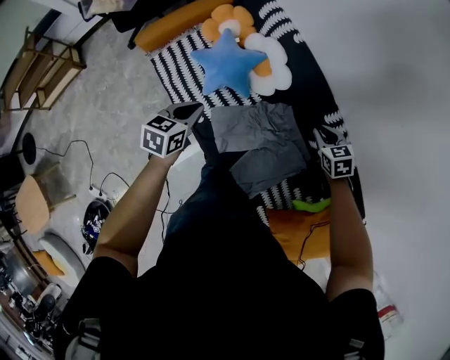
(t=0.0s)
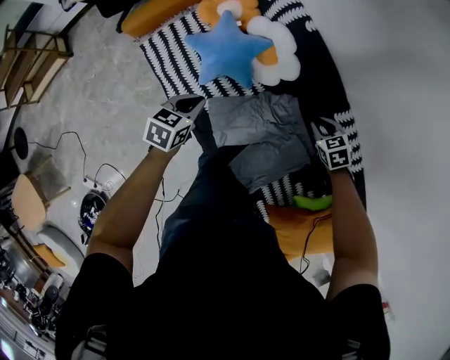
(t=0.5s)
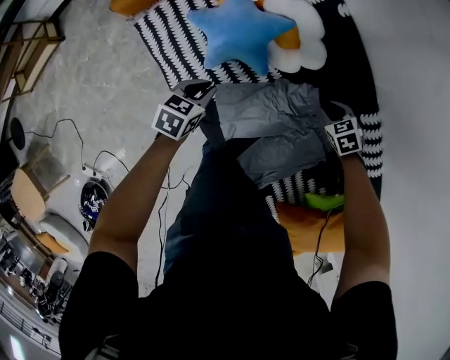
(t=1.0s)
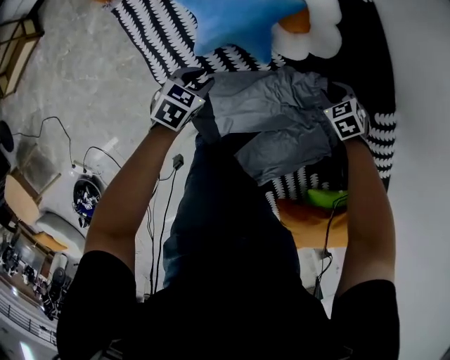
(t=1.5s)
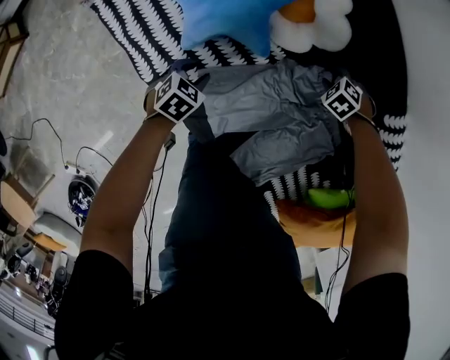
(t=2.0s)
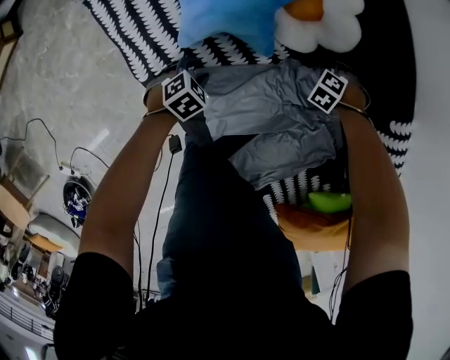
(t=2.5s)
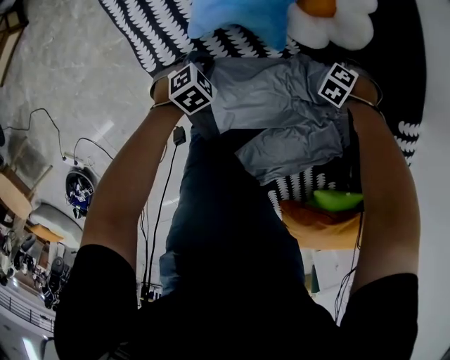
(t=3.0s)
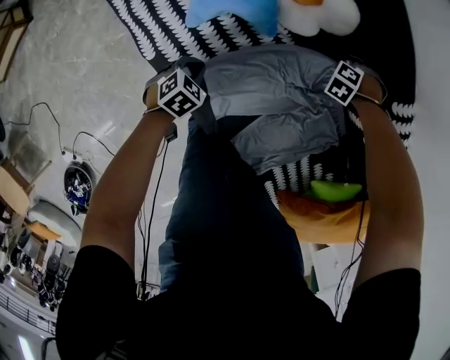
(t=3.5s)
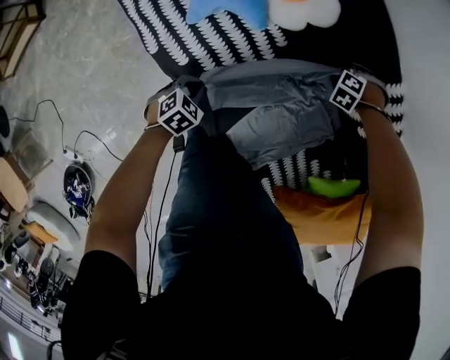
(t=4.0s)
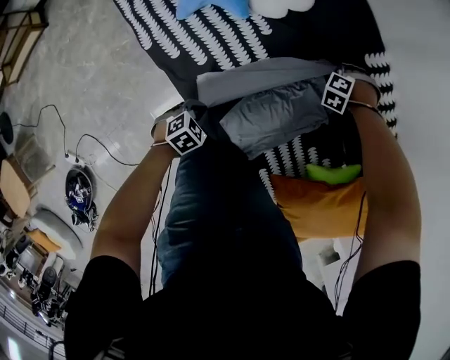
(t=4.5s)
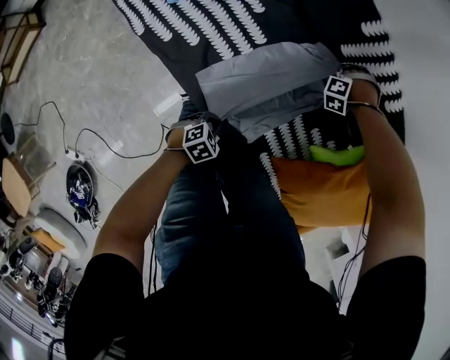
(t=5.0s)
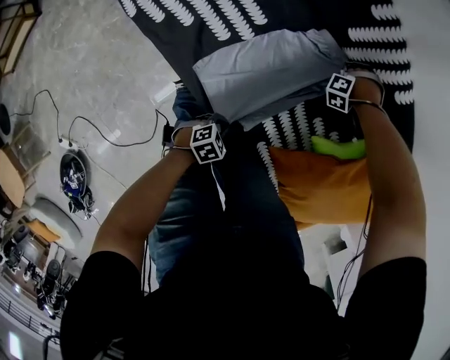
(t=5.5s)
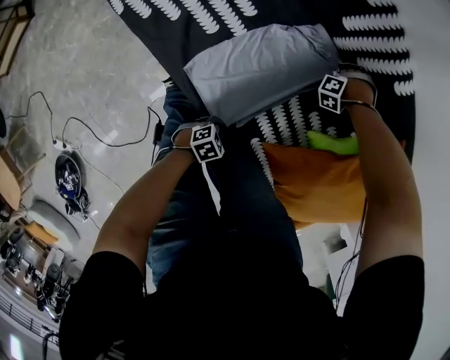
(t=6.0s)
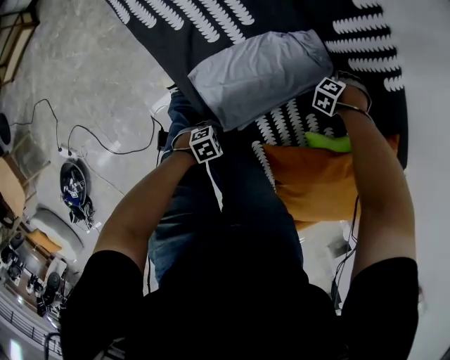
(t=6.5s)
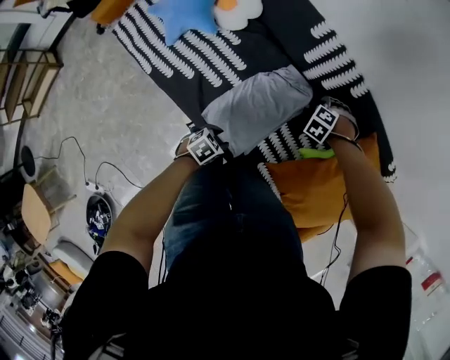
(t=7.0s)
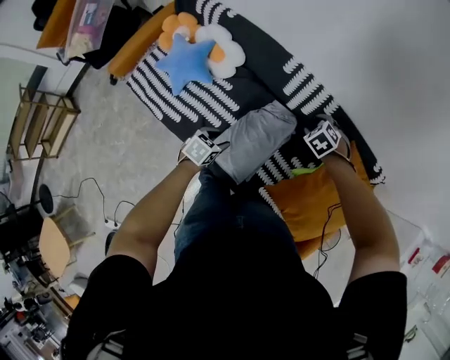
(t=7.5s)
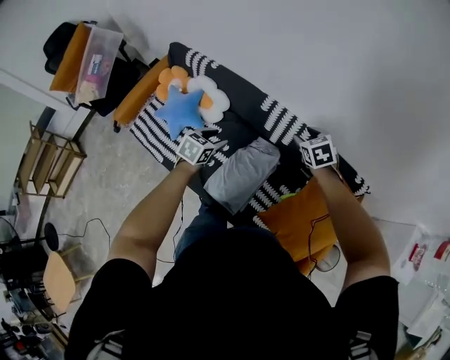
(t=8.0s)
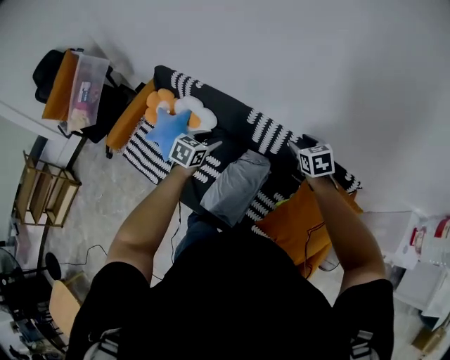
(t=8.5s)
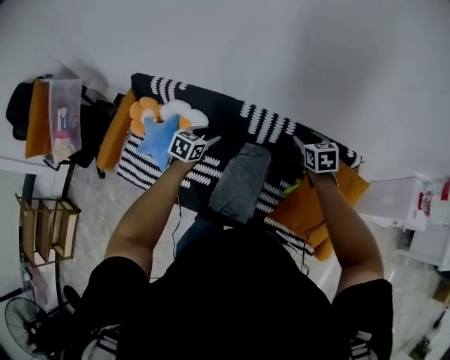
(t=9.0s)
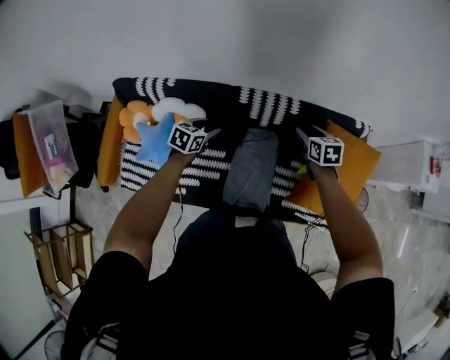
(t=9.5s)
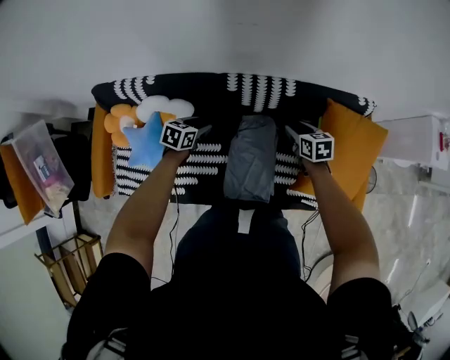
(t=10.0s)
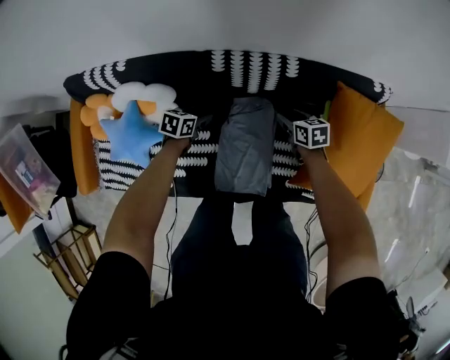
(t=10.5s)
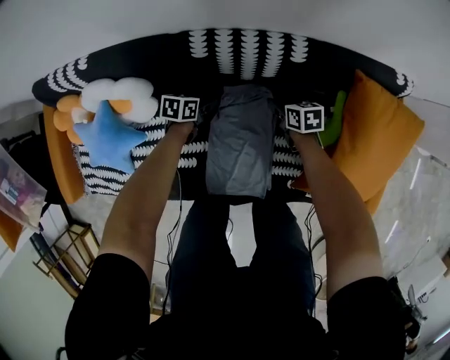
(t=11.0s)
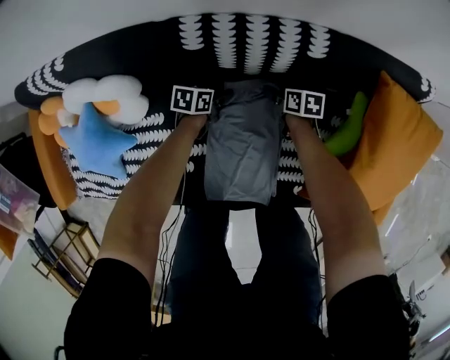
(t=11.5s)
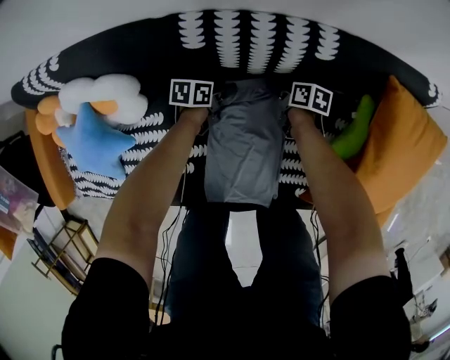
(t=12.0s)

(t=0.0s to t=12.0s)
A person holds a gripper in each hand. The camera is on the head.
t=0.0s - t=2.0s: The grippers both shift downward by some 40 cm. The right gripper tips its fingers downward by about 30 degrees; the left gripper swivels approximately 30 degrees, and opens up.
t=2.0s - t=4.0s: The left gripper moves about 15 cm, and closes up. Meanwhile the right gripper ends up some 10 cm from where it was, swivels some 30 degrees, and closes its fingers.
t=4.0s - t=6.0s: The grippers both shift to the right and forward by some 35 cm. The left gripper swivels about 30 degrees.
t=6.0s - t=8.0s: Both grippers move upward, approximately 50 cm. The left gripper changes its angle by roughly 30 degrees, and opens up. Meanwhile the right gripper twists roughly 100 degrees clockwise, seen from behind, and opens its fingers.
t=8.0s - t=10.0s: The right gripper travels downward by some 15 cm, and rotates around the line of its fingers by some 50 degrees, clockwise from behind; the left gripper shifts by about 20 cm, and rotates some 30 degrees.
t=10.0s - t=12.0s: The grippers both shift downward by about 40 cm. The right gripper rotates approximately 40 degrees; the left gripper turns by roughly 30 degrees.

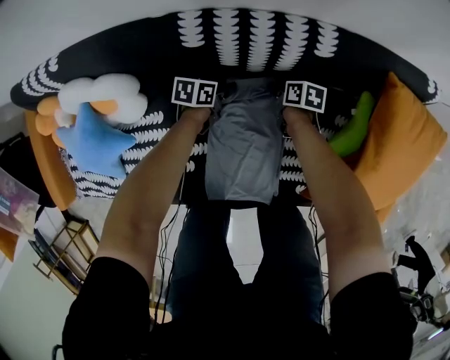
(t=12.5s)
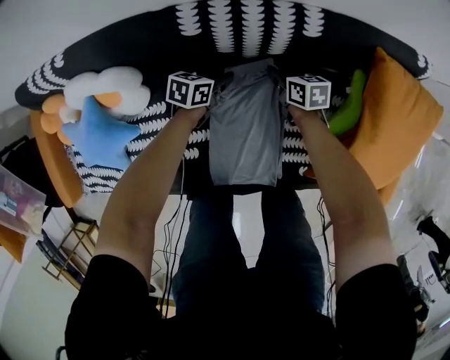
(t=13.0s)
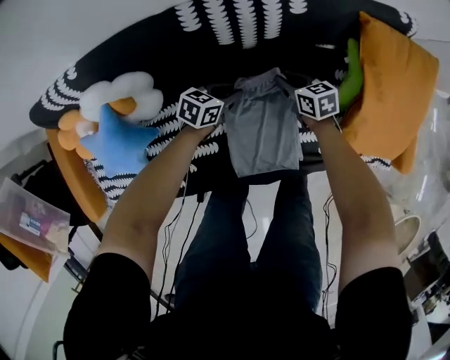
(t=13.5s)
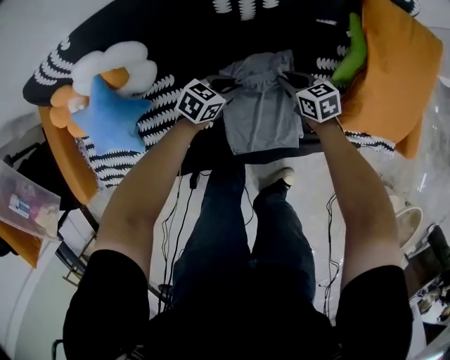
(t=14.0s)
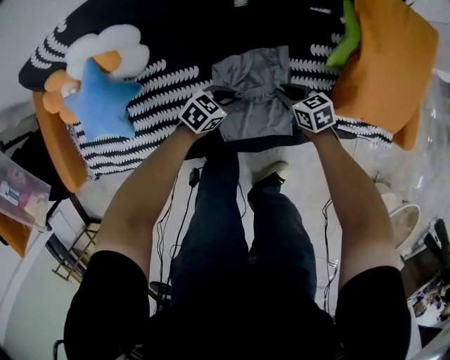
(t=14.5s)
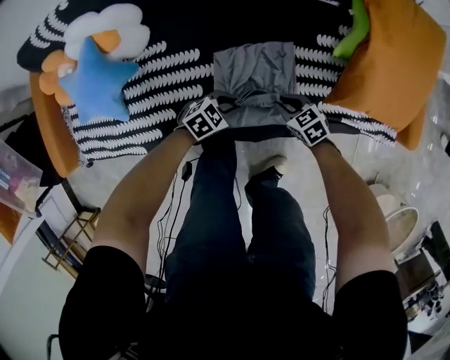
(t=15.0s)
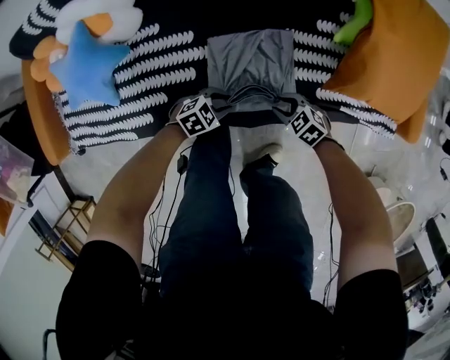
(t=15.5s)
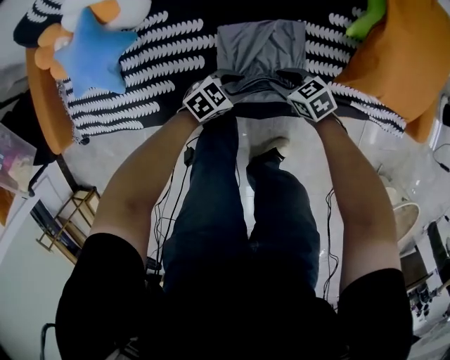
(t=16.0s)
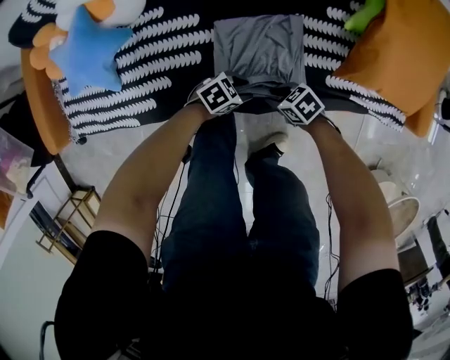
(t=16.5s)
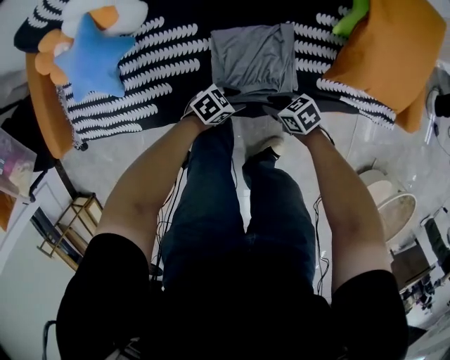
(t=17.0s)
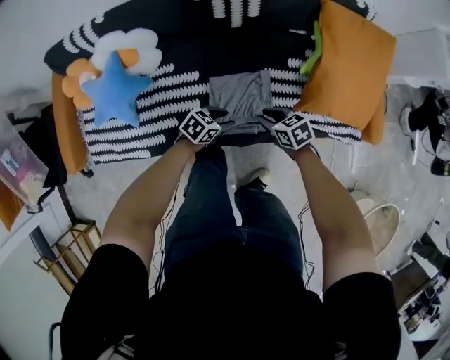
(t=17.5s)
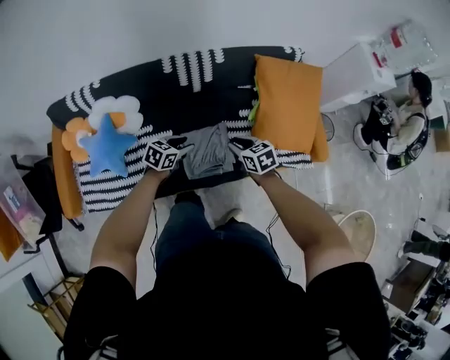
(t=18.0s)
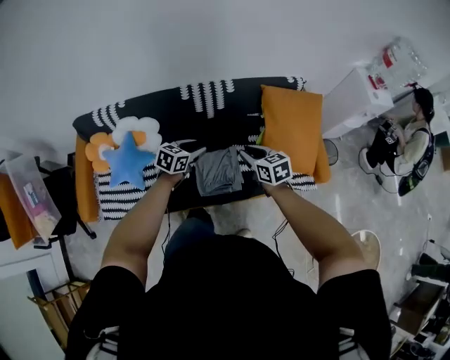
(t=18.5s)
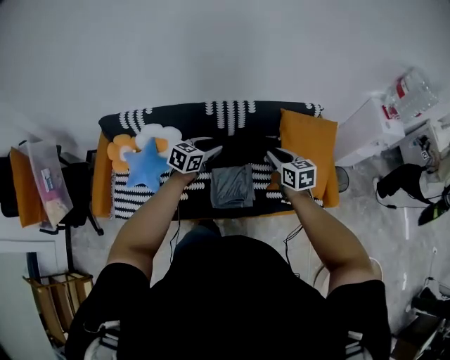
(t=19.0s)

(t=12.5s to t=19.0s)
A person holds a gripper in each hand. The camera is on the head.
t=12.5s - t=14.5s: The left gripper shifts by approximately 30 cm, and twists approximately 40 degrees clockwise, seen from behind, while the right gripper shifts by approximately 30 cm, and turns by about 30 degrees.
t=14.5s - t=17.0s: The right gripper shifts by some 20 cm, and changes its angle by some 20 degrees. The left gripper changes place by about 15 cm, and opens up.
t=17.0s - t=19.0s: The grippers both shift upward by roughly 60 cm. The right gripper rotates some 50 degrees; the left gripper rotates some 40 degrees.

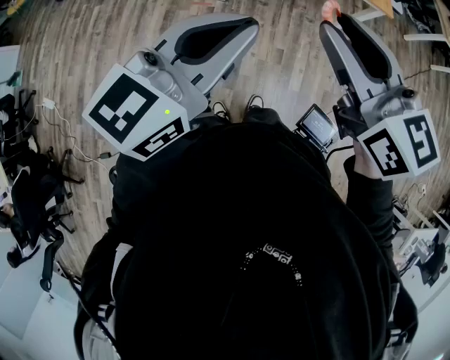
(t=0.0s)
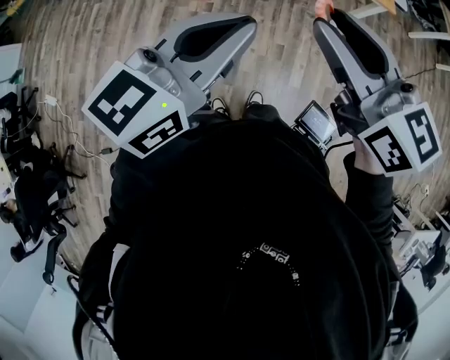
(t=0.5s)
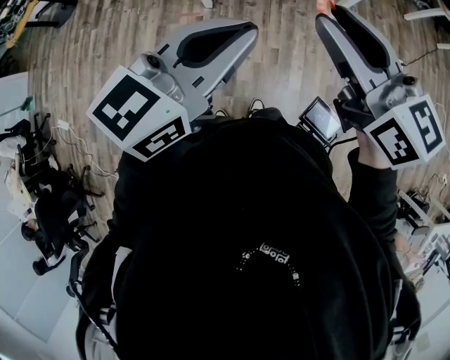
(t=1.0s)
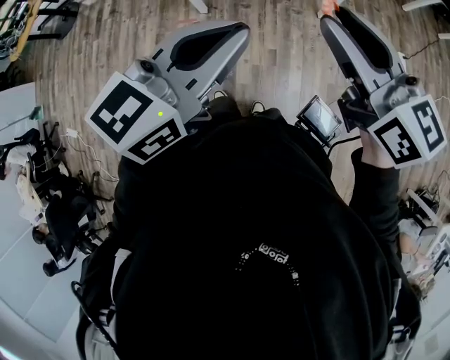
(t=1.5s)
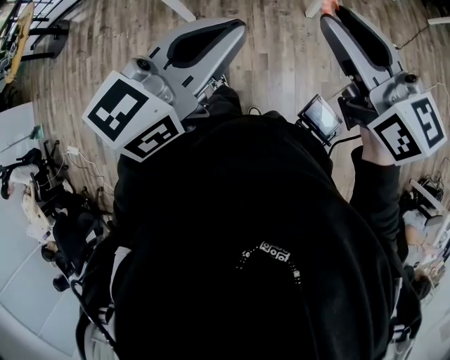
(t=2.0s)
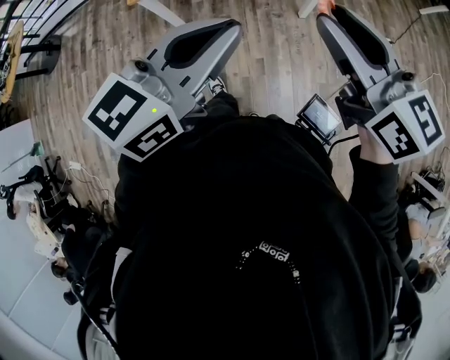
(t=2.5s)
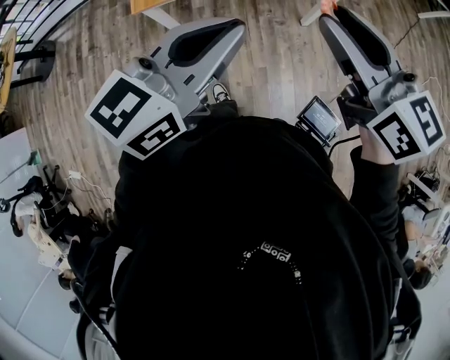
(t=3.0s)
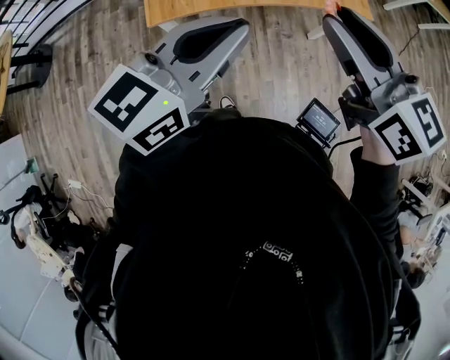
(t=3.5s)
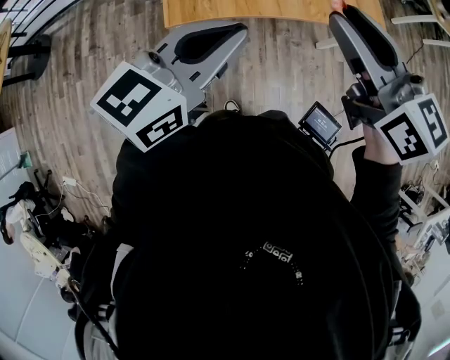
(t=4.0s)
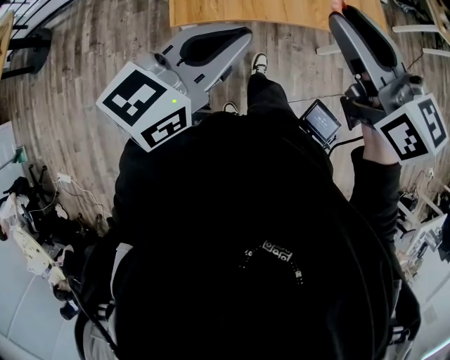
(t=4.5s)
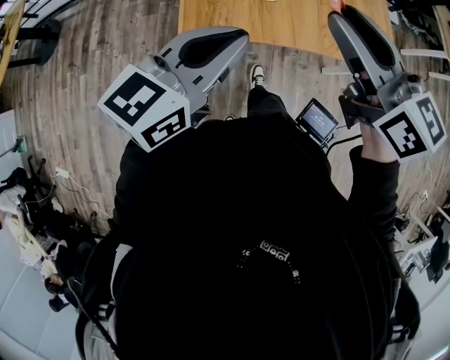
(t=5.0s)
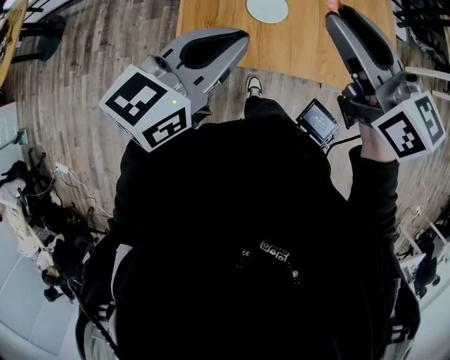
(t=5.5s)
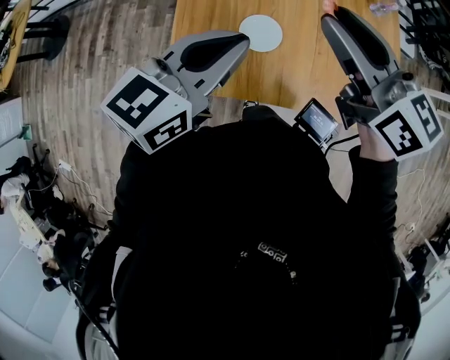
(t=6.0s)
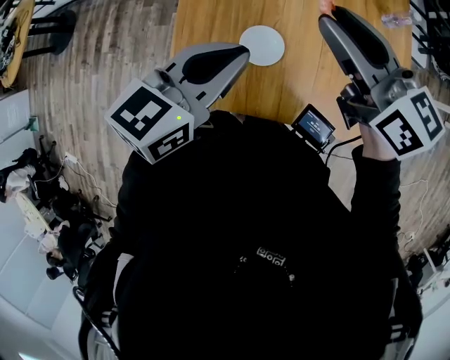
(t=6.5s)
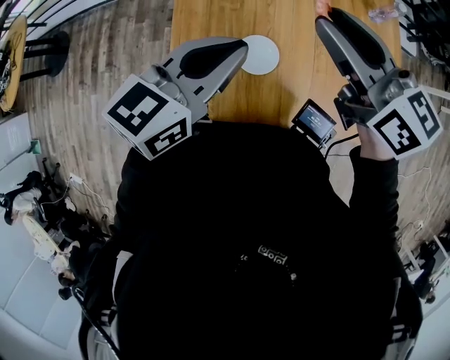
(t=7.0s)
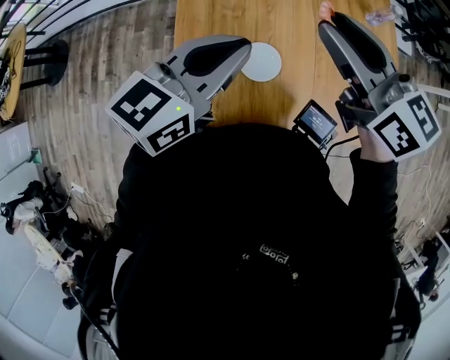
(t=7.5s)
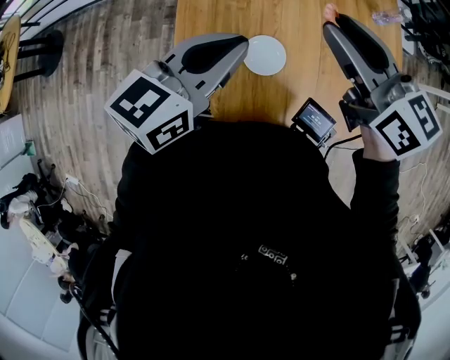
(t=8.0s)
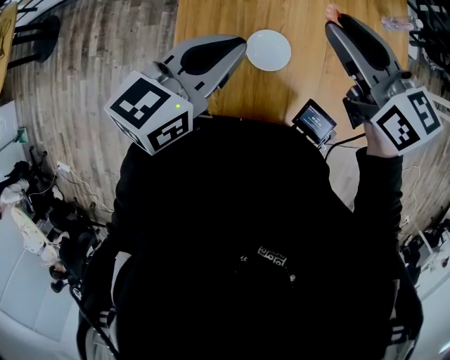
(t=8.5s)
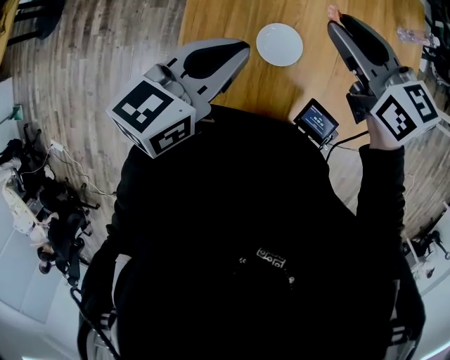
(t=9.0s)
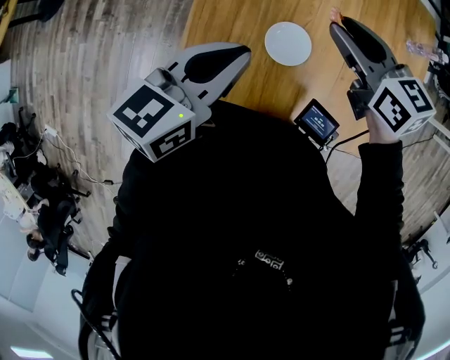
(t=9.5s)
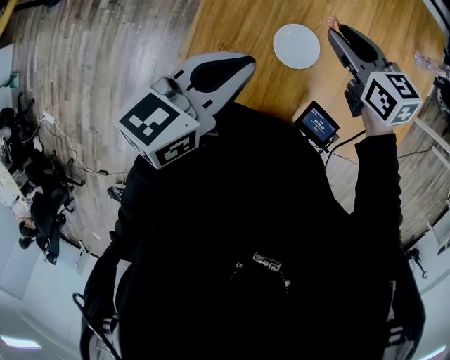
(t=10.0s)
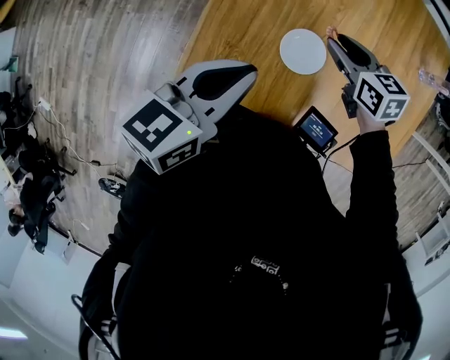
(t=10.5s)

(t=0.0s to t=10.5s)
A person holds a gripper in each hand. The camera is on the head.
t=0.0s - t=2.0s: Both grippers move to the right and forward, some 20 cm.
t=2.0s - t=4.0s: The two grippers go about 35 cm to the left and forward.
t=4.0s - t=6.5s: Both grippers move forward, approximately 35 cm.
t=8.5s - t=10.5s: The right gripper shifts roughly 20 cm downward, and changes its angle by about 30 degrees. Meanwhile the left gripper moves to the left, approximately 5 cm.
